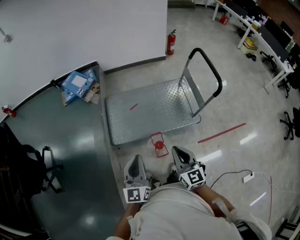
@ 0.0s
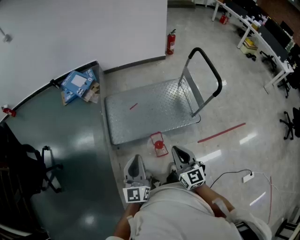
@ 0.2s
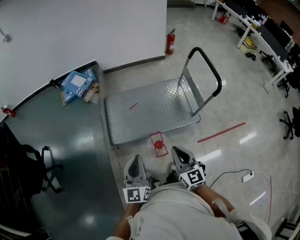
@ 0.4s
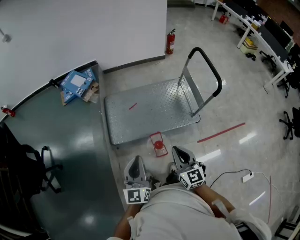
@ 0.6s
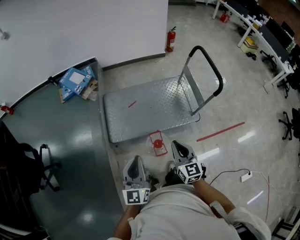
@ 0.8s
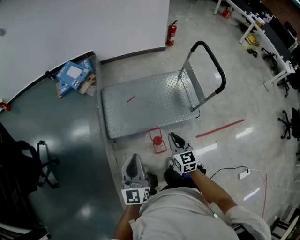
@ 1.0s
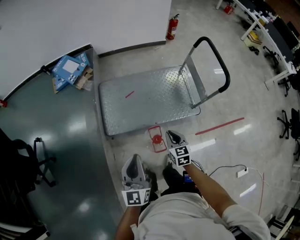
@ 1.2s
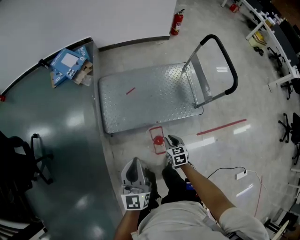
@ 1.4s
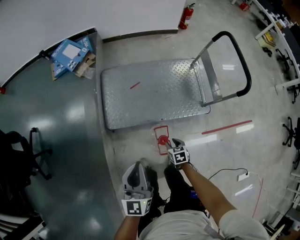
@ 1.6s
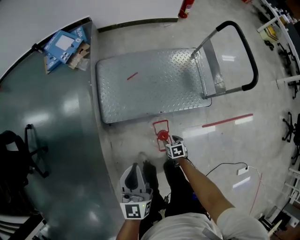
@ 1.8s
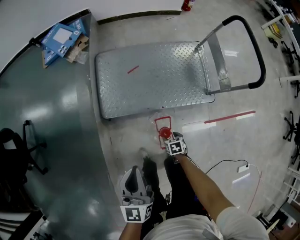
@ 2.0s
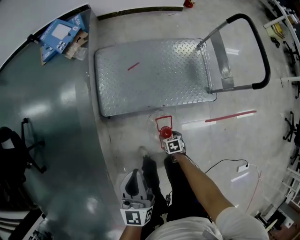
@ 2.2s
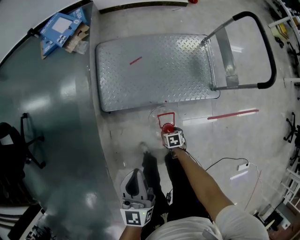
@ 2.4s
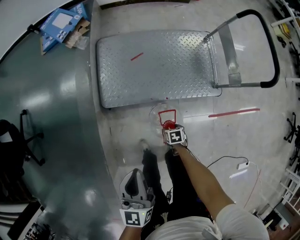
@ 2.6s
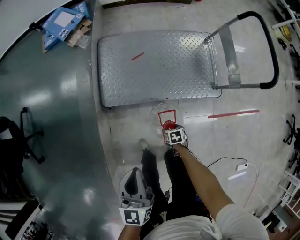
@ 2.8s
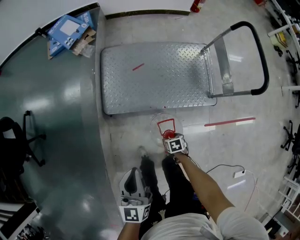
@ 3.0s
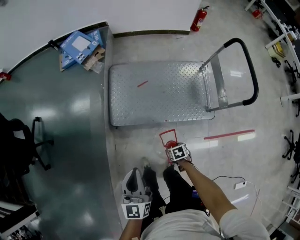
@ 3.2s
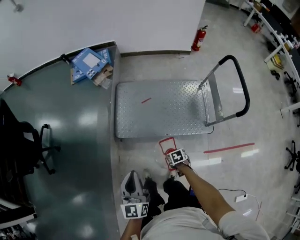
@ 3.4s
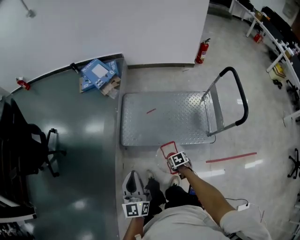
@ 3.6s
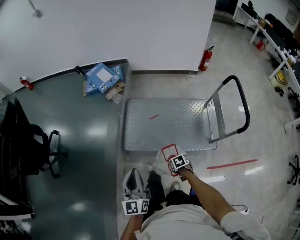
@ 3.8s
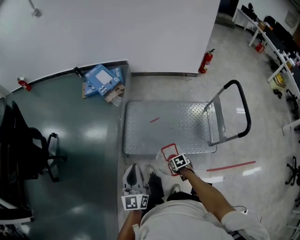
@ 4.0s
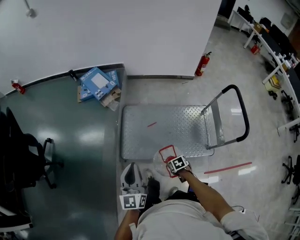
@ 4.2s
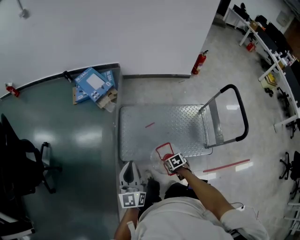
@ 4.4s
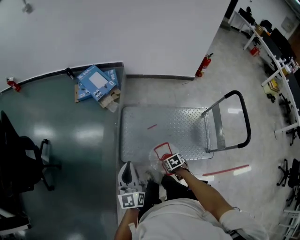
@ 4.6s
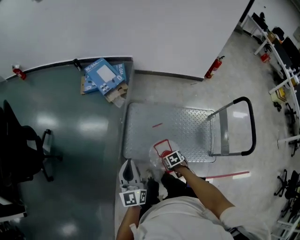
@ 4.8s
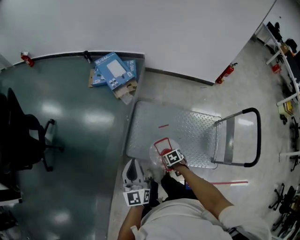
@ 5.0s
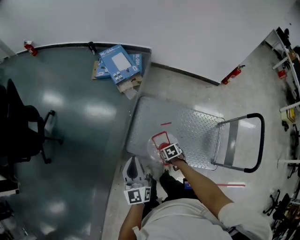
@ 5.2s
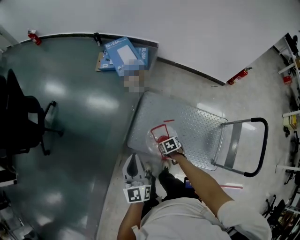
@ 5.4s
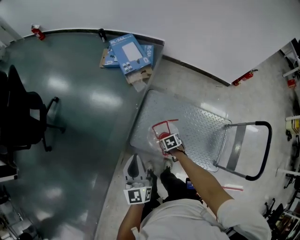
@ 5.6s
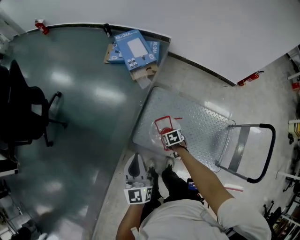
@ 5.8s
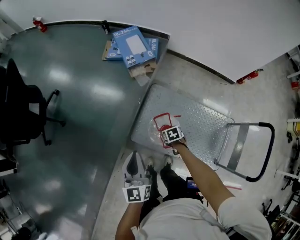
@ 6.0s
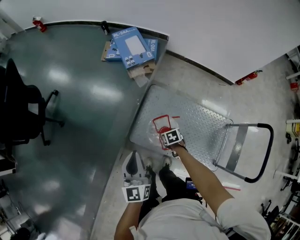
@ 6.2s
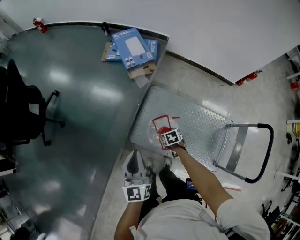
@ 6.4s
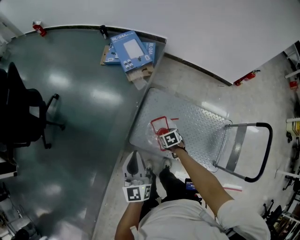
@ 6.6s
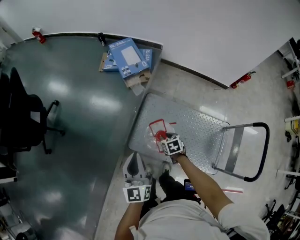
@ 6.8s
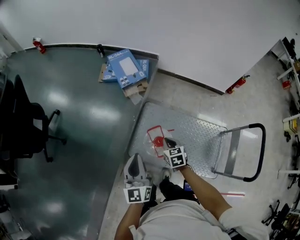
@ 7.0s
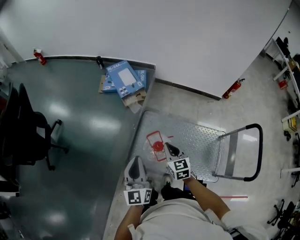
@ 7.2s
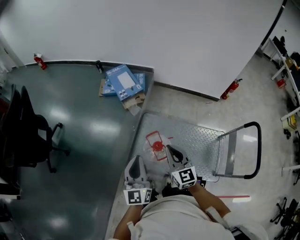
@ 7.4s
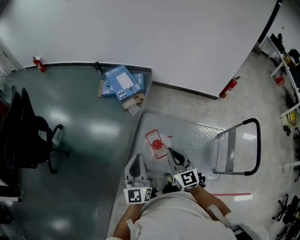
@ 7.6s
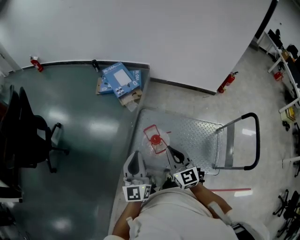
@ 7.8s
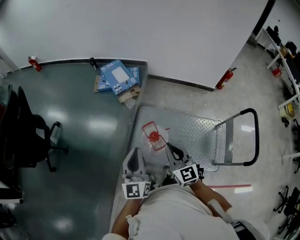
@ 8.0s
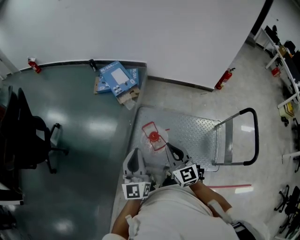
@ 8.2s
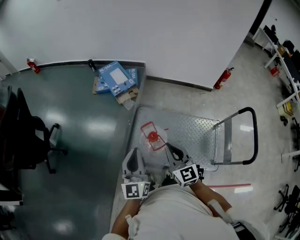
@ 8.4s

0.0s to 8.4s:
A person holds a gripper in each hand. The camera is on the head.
0.0s to 1.4s: The right gripper heads downward, covering roughly 30 cm, and angles its fingers downward, by some 40 degrees. Meanwhile the left gripper heads forward and downward, covering roughly 10 cm.
1.4s to 2.8s: The left gripper shifts about 10 cm downward; the right gripper heads downward, covering roughly 25 cm, rotates about 30 degrees, and opens.
2.8s to 4.2s: The right gripper travels upward by approximately 25 cm. The left gripper travels upward by approximately 15 cm.
4.2s to 5.6s: The left gripper heads forward, covering some 15 cm, and changes its angle by roughly 20 degrees. Meanwhile the right gripper goes some 30 cm forward, and changes its angle by roughly 20 degrees.
5.6s to 7.0s: The right gripper travels upward by approximately 15 cm, swivels approximately 30 degrees, and closes.
7.0s to 8.4s: The right gripper goes roughly 25 cm upward and backward, and points its fingers roughly 40 degrees further upward. Meanwhile the left gripper travels upward and backward by roughly 10 cm.

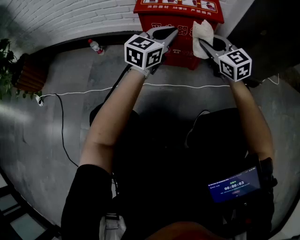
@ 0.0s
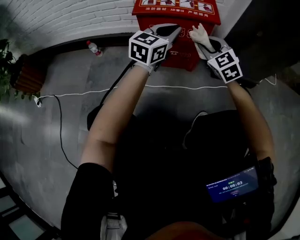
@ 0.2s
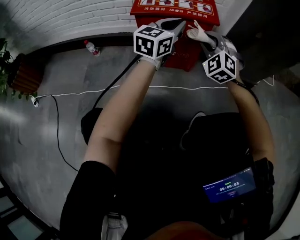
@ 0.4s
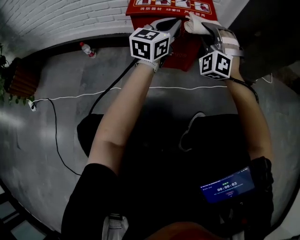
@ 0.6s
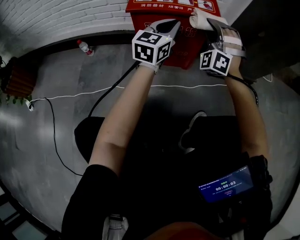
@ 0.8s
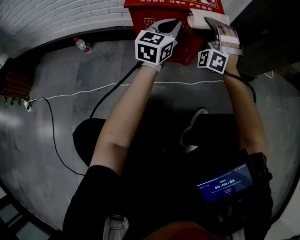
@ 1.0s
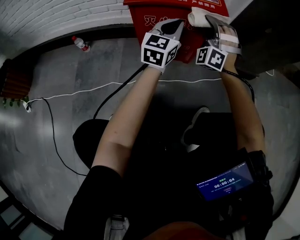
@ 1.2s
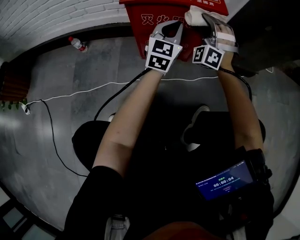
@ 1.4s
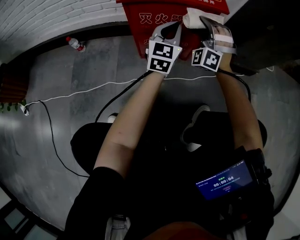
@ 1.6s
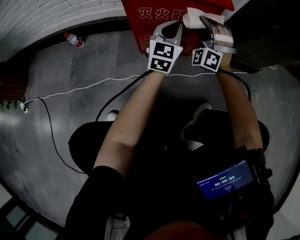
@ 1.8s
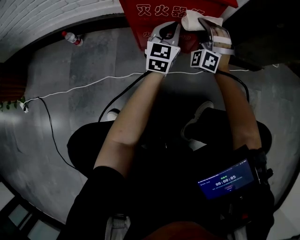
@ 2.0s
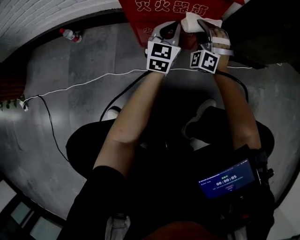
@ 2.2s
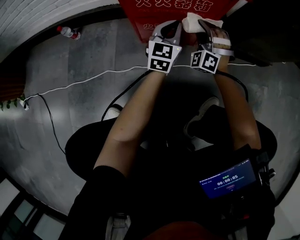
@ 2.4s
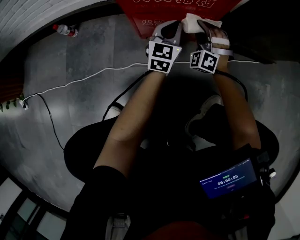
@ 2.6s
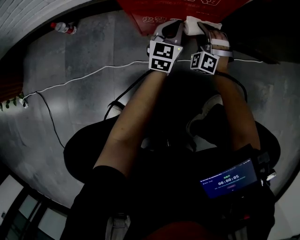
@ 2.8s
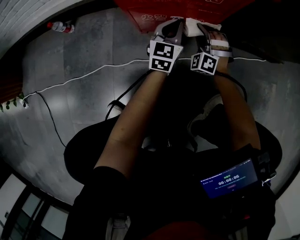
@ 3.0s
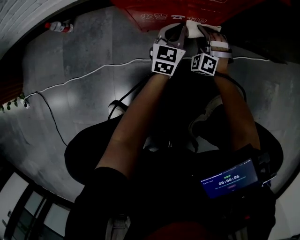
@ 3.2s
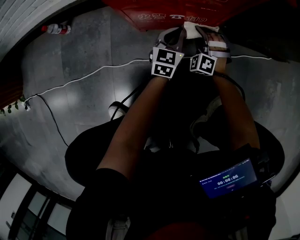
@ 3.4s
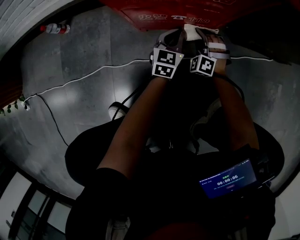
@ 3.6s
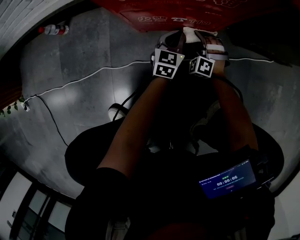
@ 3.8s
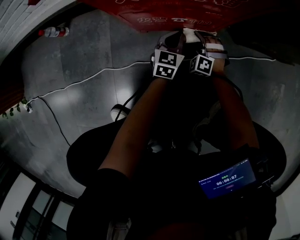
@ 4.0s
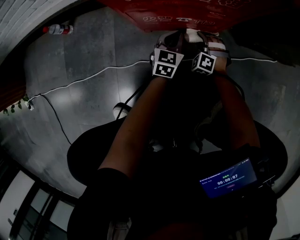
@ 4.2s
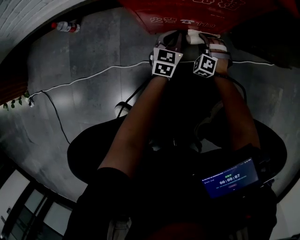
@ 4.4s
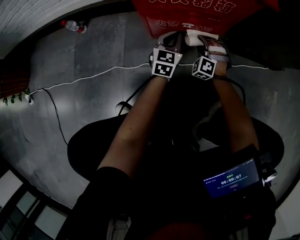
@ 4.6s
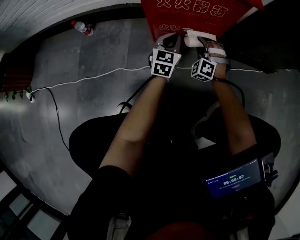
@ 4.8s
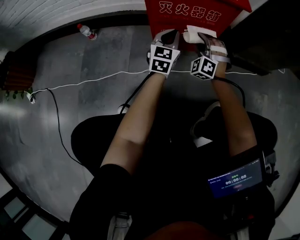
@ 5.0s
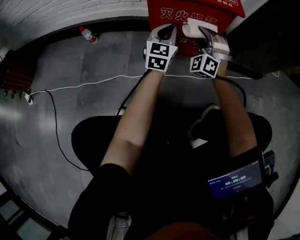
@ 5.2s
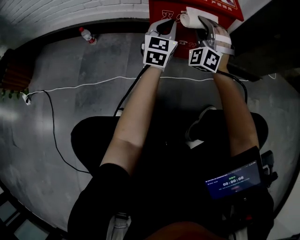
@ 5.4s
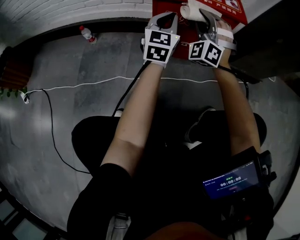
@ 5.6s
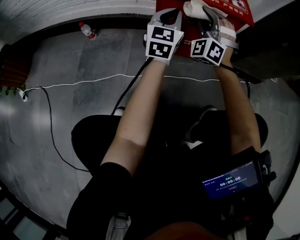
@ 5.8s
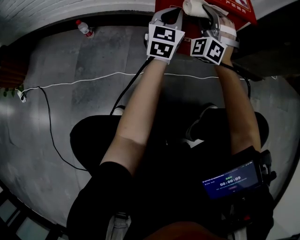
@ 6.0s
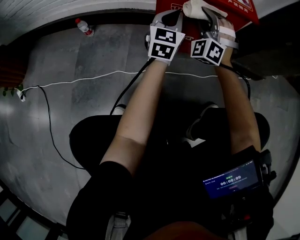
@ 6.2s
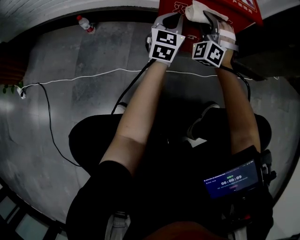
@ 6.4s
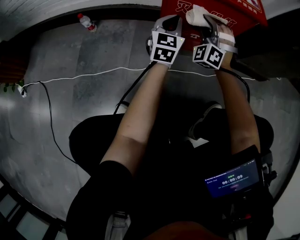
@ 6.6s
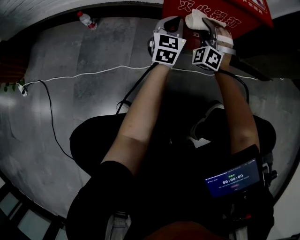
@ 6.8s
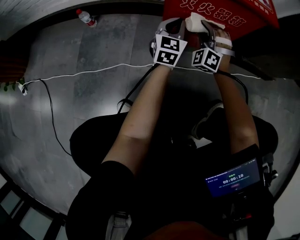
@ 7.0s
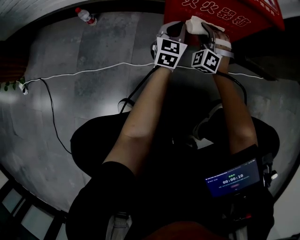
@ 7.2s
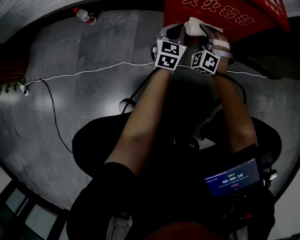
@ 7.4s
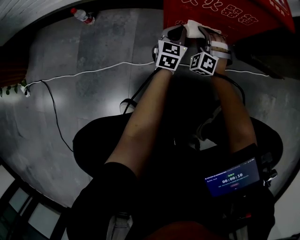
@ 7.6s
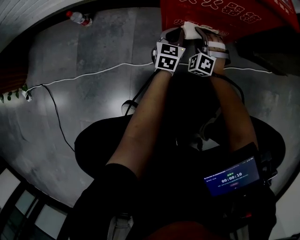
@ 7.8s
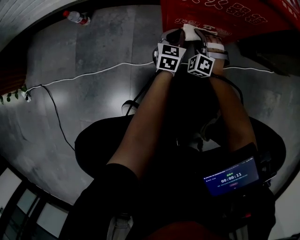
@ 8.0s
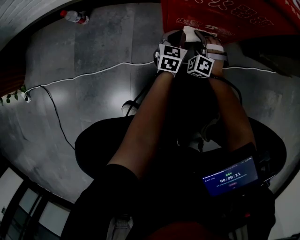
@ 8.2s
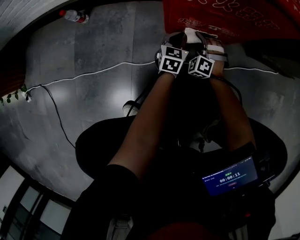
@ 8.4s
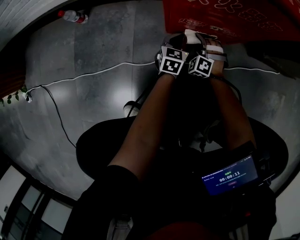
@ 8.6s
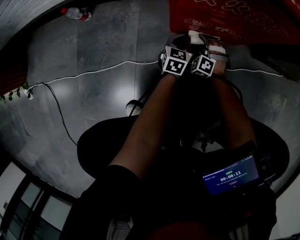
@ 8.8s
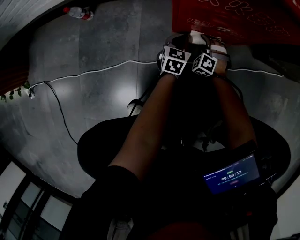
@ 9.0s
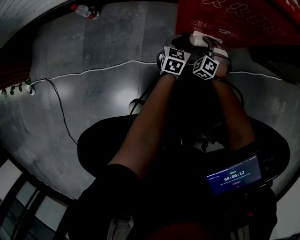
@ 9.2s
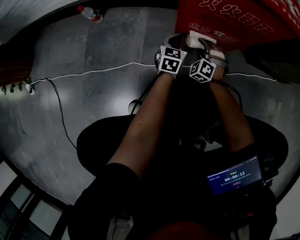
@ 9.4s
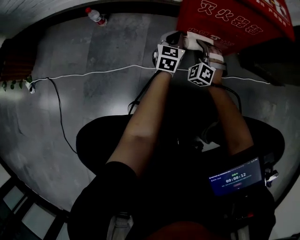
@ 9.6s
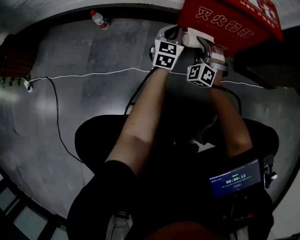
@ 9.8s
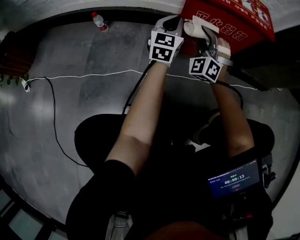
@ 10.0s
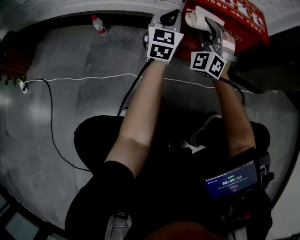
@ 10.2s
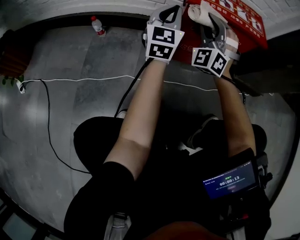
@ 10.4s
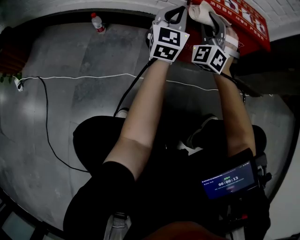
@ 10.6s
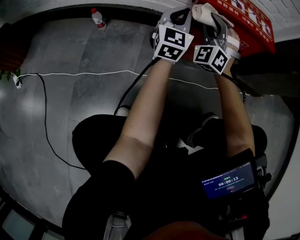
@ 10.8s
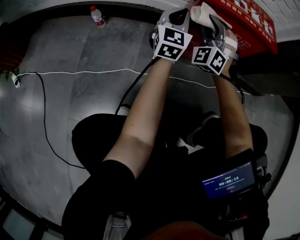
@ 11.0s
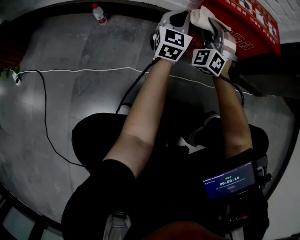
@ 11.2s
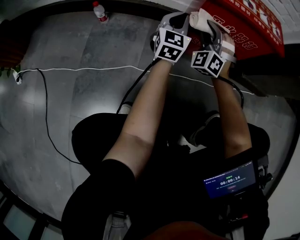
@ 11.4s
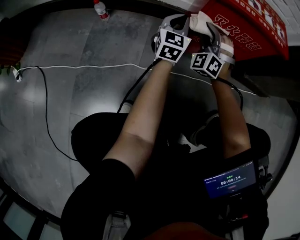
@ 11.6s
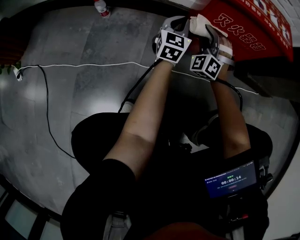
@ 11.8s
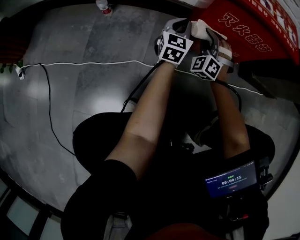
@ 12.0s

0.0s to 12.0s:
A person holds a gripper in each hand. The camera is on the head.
0.0s to 1.6s: The left gripper shifts about 10 cm downward.
1.6s to 3.0s: The left gripper moves downward, about 20 cm.
3.0s to 4.4s: The left gripper heads downward, covering approximately 10 cm.
4.4s to 6.0s: The left gripper travels upward by some 30 cm, and swivels about 20 degrees.
6.0s to 7.6s: The left gripper heads downward, covering roughly 25 cm.
7.6s to 9.0s: The left gripper is displaced downward by about 15 cm.
9.0s to 10.4s: The left gripper goes about 40 cm upward, and tilts its fingers roughly 40 degrees upward.
10.4s to 12.0s: The left gripper heads downward, covering about 20 cm.

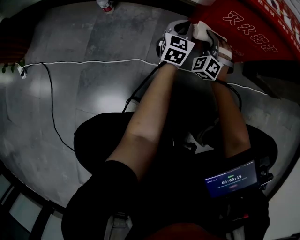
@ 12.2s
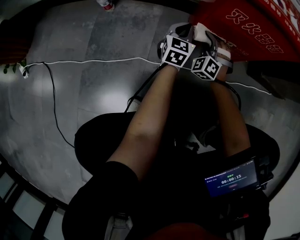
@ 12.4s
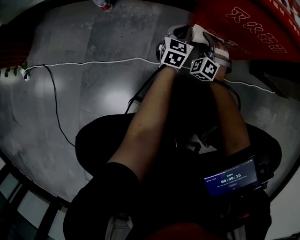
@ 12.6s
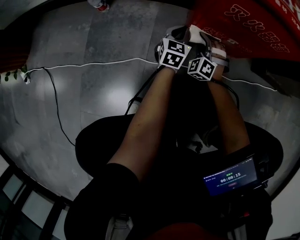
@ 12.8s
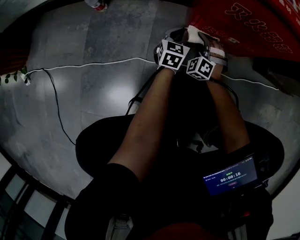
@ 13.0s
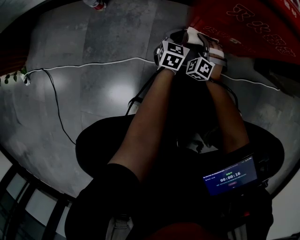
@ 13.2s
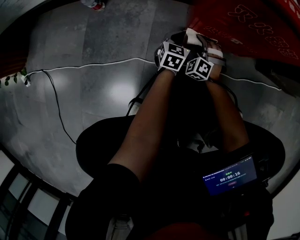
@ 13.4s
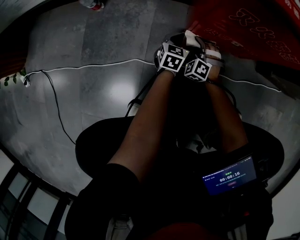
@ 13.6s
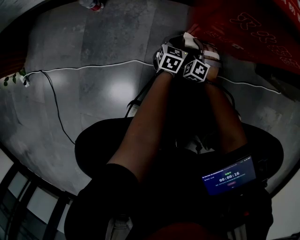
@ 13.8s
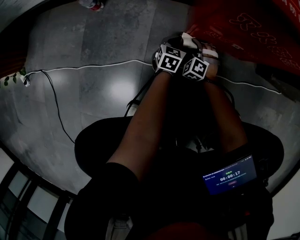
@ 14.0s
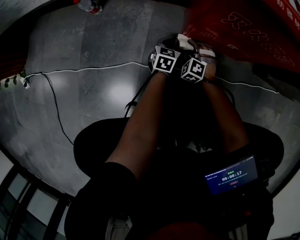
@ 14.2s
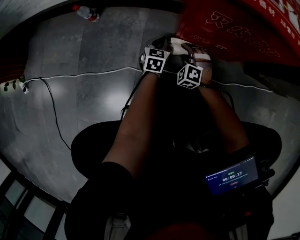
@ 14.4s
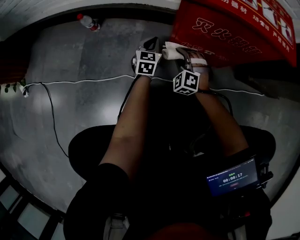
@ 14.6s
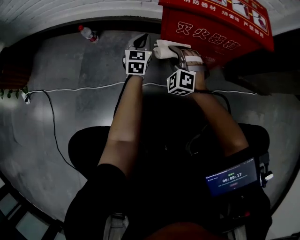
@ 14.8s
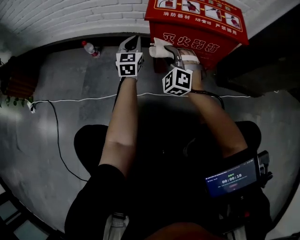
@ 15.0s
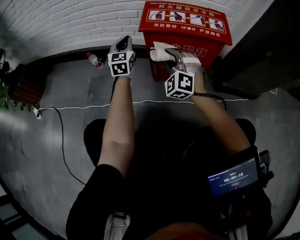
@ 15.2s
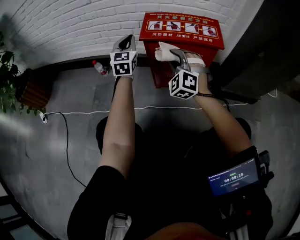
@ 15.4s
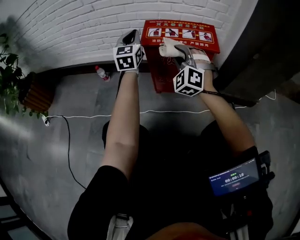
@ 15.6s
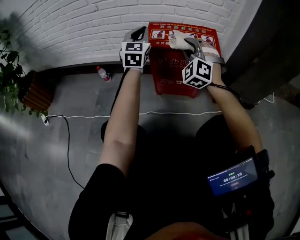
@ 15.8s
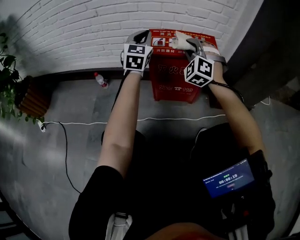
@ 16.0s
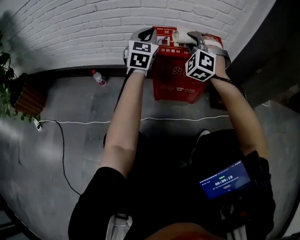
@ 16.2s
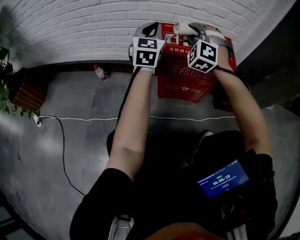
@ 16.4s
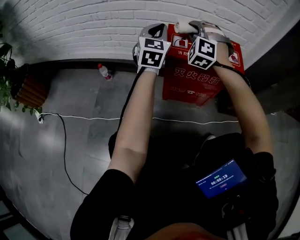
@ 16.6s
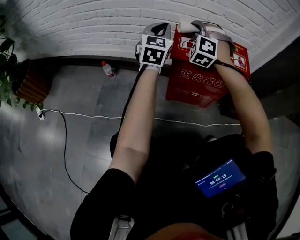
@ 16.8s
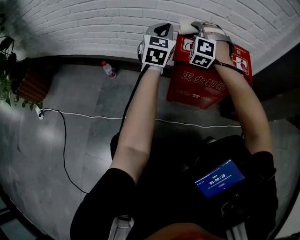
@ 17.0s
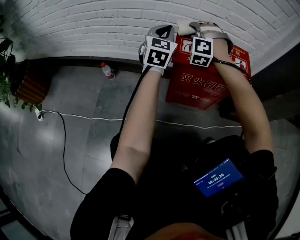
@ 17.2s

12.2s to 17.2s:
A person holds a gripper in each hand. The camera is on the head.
12.2s to 13.8s: The left gripper is displaced downward by about 20 cm, and turns by some 20 degrees.
13.8s to 15.6s: The left gripper goes about 60 cm upward, and points its fingers approximately 40 degrees further upward.
15.6s to 17.2s: The left gripper ends up approximately 10 cm from where it was.
